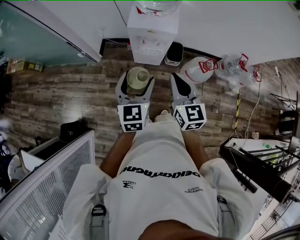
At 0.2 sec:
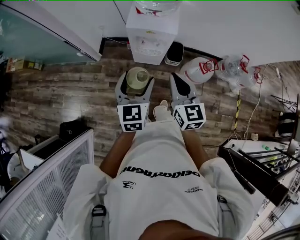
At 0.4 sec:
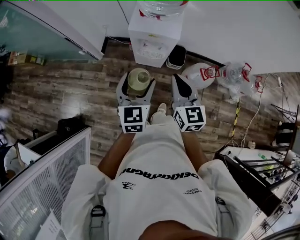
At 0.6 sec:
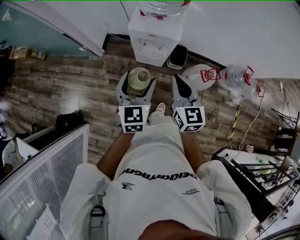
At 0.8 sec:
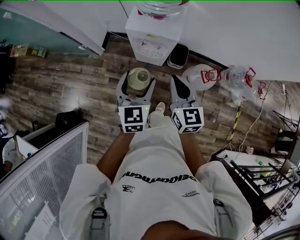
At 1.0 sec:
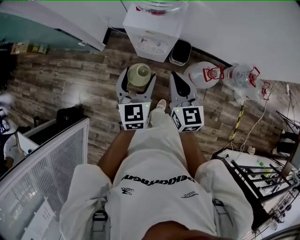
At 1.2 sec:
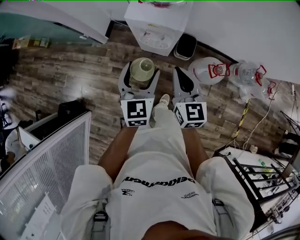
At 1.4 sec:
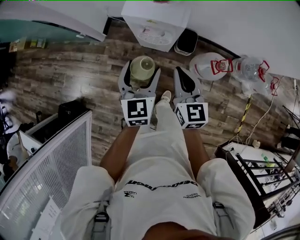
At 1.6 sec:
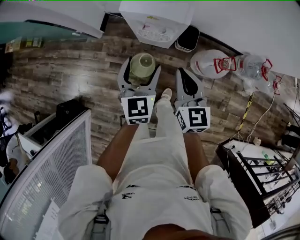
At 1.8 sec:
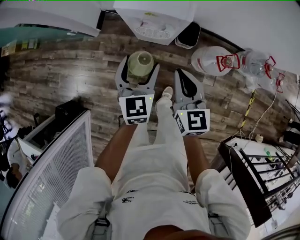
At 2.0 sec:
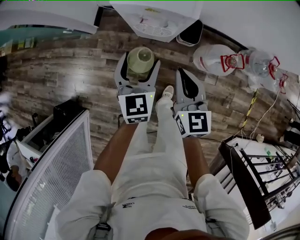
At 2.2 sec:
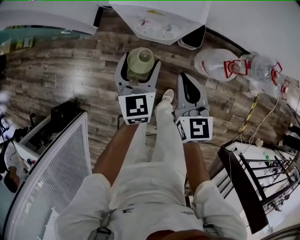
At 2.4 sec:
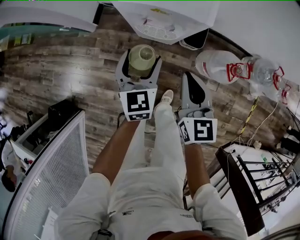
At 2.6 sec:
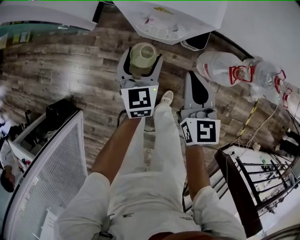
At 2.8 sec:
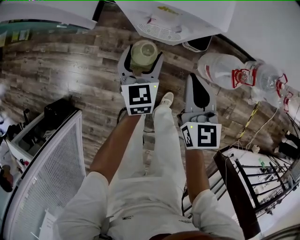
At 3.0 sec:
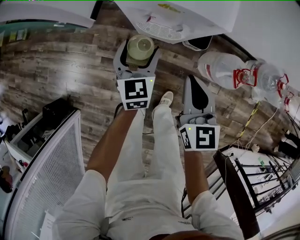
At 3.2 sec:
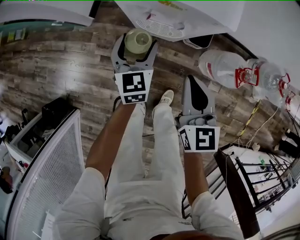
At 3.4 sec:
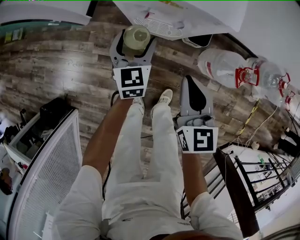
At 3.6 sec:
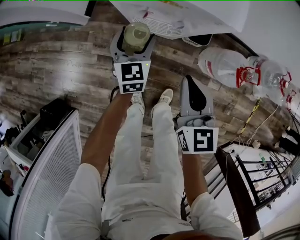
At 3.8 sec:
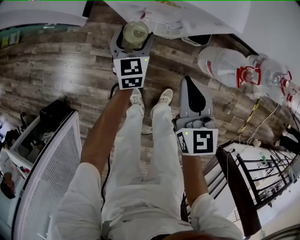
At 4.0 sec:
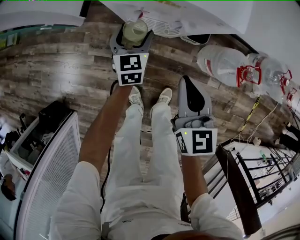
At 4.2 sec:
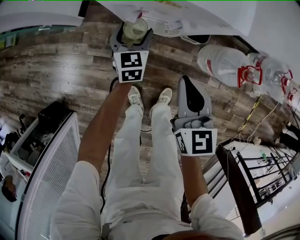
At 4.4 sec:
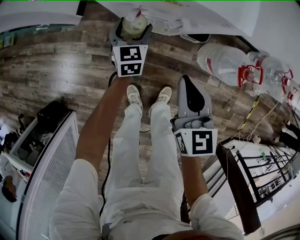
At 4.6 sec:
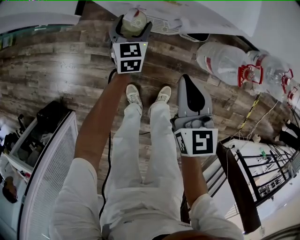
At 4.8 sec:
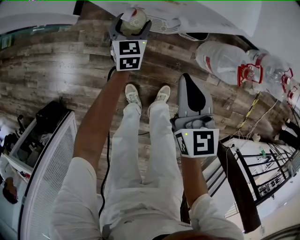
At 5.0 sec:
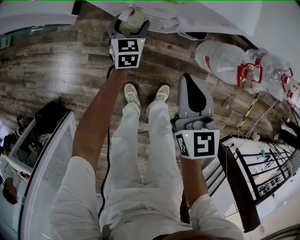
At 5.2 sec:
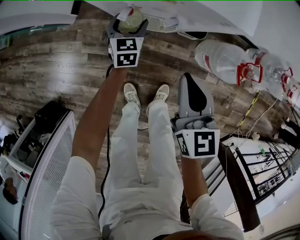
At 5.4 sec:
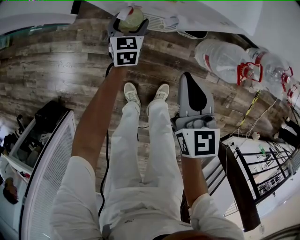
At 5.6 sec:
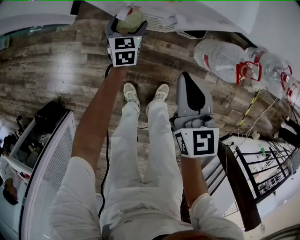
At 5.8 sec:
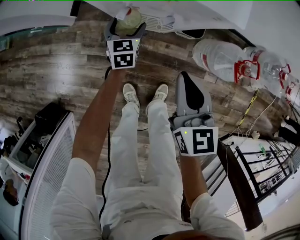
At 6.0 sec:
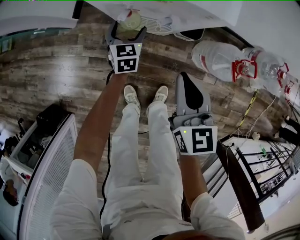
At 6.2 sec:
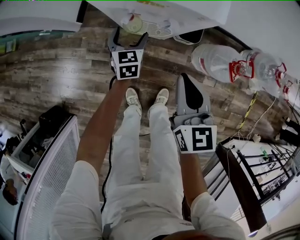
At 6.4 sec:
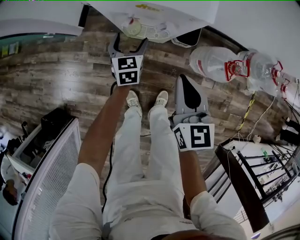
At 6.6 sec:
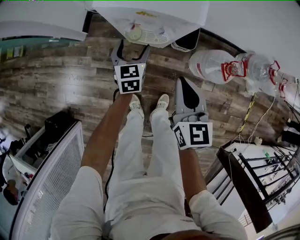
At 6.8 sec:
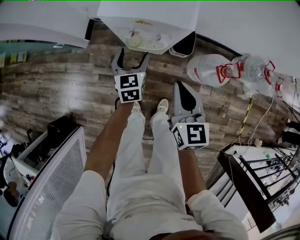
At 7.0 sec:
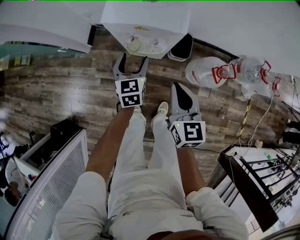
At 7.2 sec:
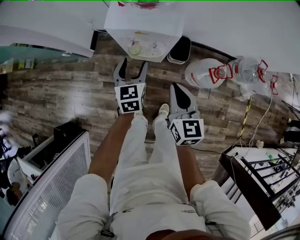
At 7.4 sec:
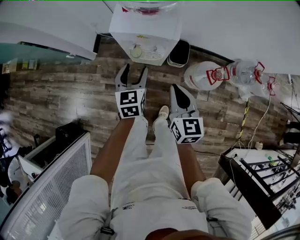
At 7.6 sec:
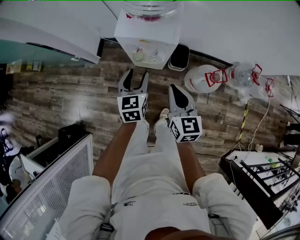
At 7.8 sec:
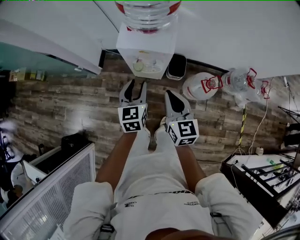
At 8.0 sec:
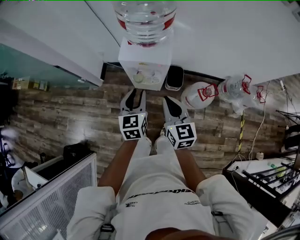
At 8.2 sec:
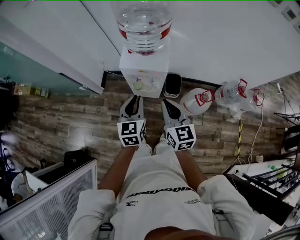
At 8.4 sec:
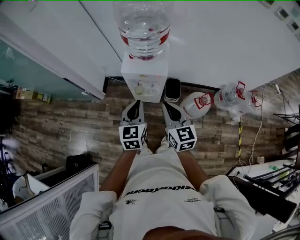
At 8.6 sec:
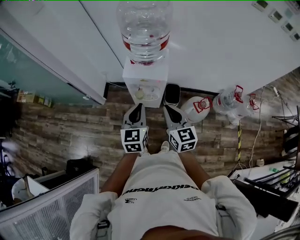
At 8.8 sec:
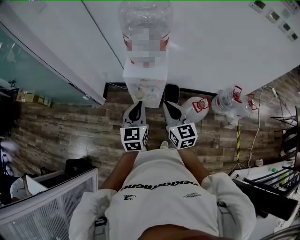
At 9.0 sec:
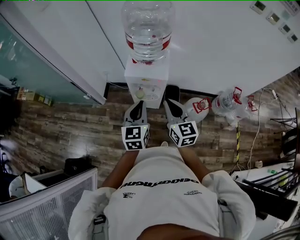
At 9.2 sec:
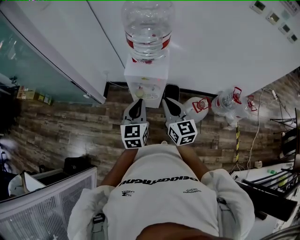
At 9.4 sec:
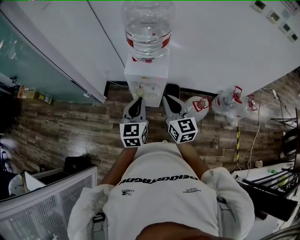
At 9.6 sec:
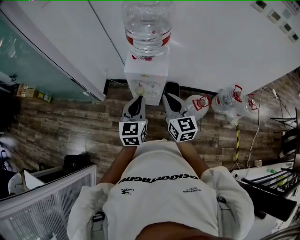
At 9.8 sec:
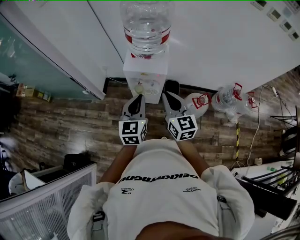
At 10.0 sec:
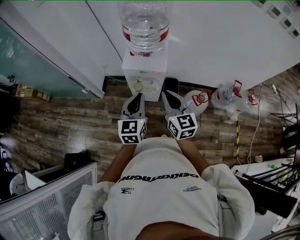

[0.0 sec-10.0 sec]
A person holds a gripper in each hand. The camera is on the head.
0.0 sec to 1.4 sec: The left gripper heads forward, downward and to the right, covering approximately 15 cm. Meanwhile the right gripper travels downward, forward and to the right by some 20 cm.
1.4 sec to 2.8 sec: The right gripper heads downward, covering approximately 20 cm. Meanwhile the left gripper travels downward and forward by roughly 30 cm.
2.8 sec to 4.2 sec: The right gripper travels downward by roughly 10 cm. Meanwhile the left gripper moves downward and forward, roughly 20 cm.
4.2 sec to 5.8 sec: The left gripper moves downward, approximately 5 cm.
5.8 sec to 7.2 sec: The left gripper heads upward, covering about 30 cm. Meanwhile the right gripper shifts approximately 15 cm upward.
7.2 sec to 8.6 sec: The right gripper is displaced upward by some 20 cm; the left gripper goes some 30 cm upward and backward, and closes up.
8.6 sec to 10.0 sec: The grippers stay close to where they were, moving slightly.

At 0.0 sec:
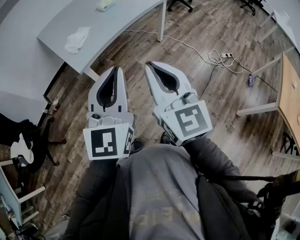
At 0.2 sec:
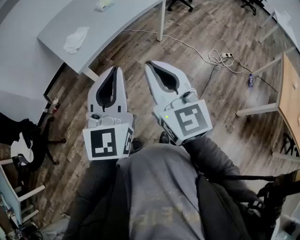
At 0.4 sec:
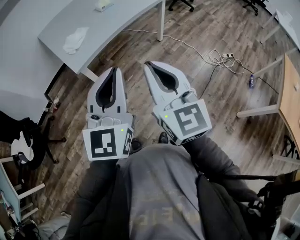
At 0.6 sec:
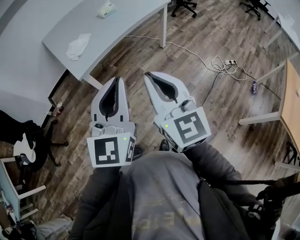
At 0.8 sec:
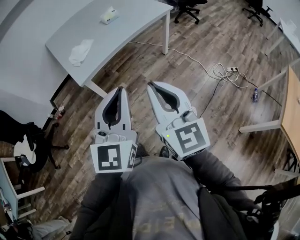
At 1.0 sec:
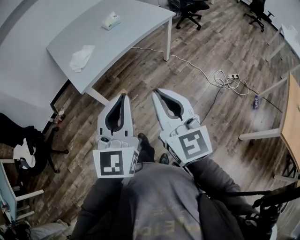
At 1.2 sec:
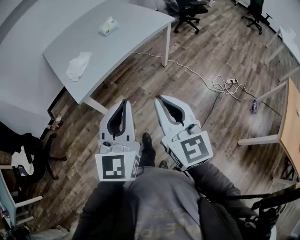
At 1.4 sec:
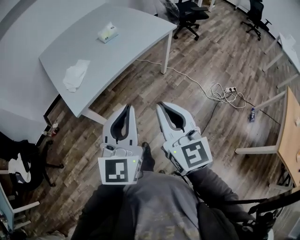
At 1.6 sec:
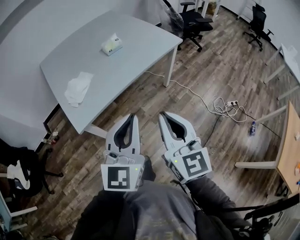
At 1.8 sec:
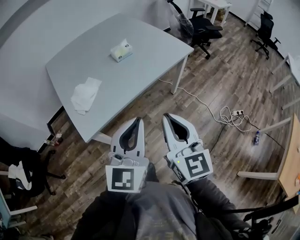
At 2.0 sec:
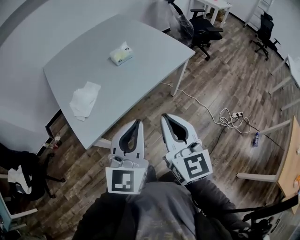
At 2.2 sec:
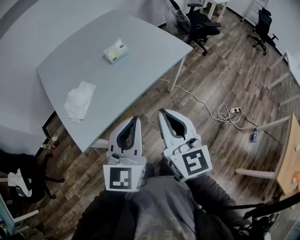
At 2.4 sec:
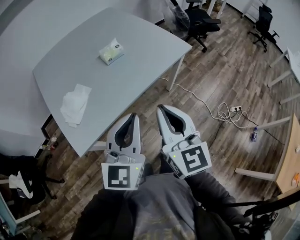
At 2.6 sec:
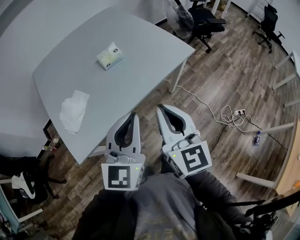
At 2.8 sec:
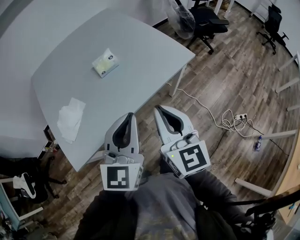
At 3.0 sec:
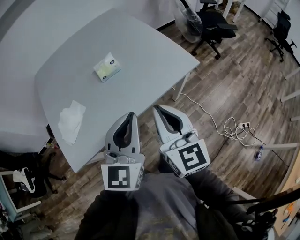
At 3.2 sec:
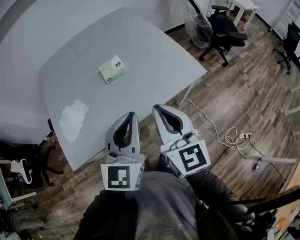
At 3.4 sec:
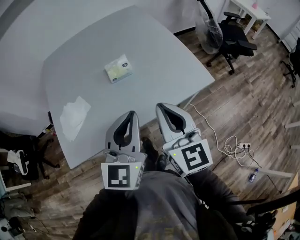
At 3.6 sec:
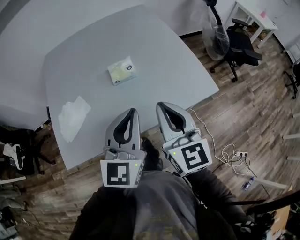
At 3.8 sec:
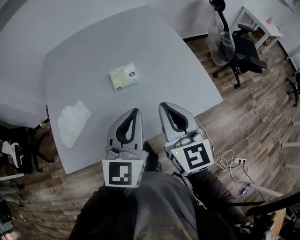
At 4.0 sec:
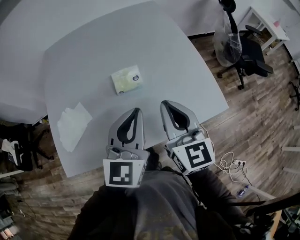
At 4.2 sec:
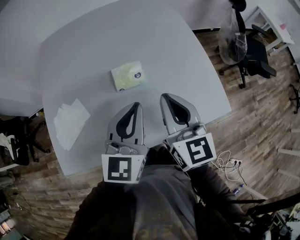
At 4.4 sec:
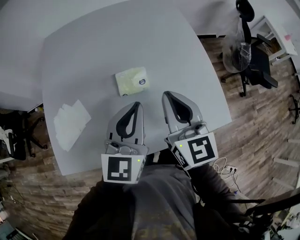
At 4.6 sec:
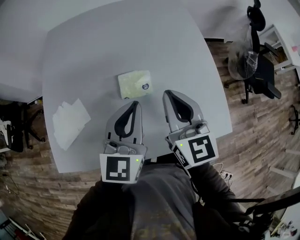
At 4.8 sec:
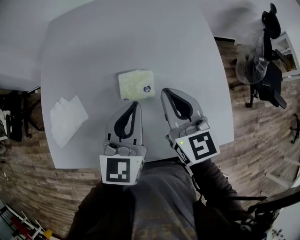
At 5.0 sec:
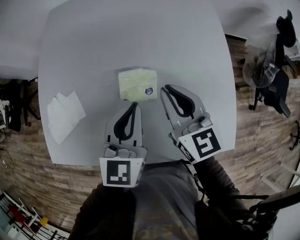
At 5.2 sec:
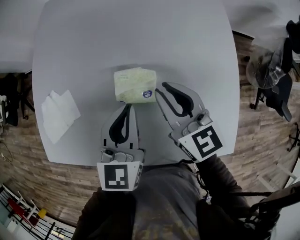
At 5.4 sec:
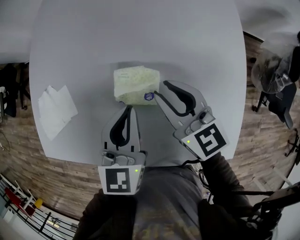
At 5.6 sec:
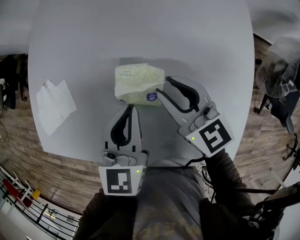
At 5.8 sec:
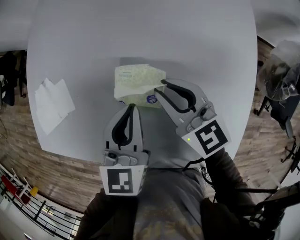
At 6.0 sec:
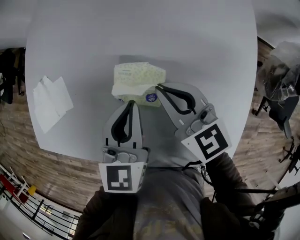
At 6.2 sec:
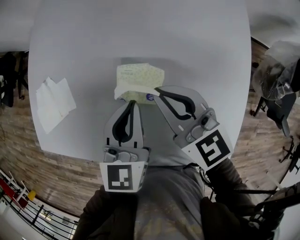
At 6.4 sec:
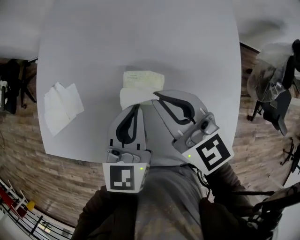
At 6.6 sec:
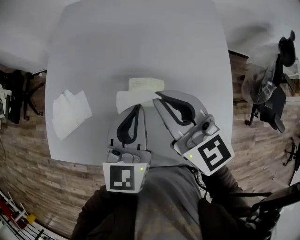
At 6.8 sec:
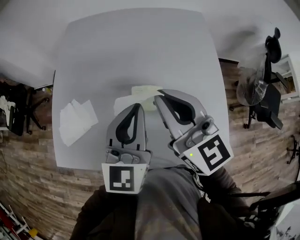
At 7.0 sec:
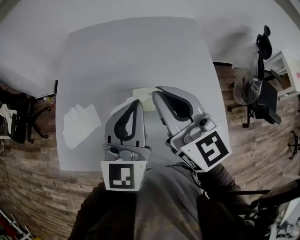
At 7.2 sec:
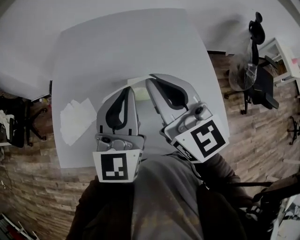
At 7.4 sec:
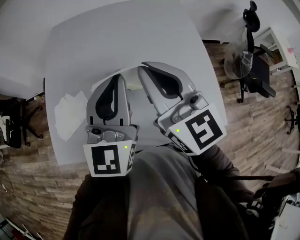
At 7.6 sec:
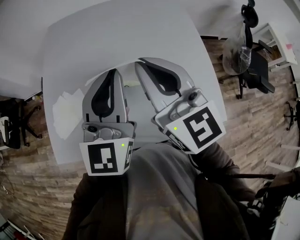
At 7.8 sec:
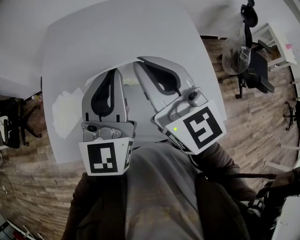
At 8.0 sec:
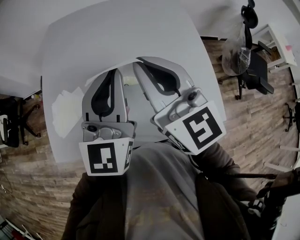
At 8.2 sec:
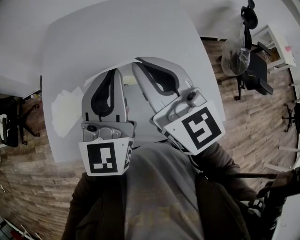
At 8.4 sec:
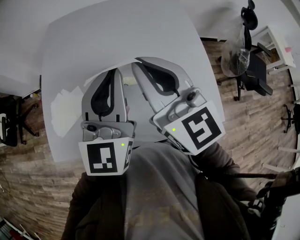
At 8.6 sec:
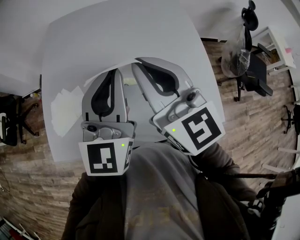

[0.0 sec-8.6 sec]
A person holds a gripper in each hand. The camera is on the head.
0.0 sec to 1.4 sec: Both grippers travel together forward and to the right, approximately 20 cm.
1.4 sec to 2.8 sec: The grippers both shift forward by some 35 cm.
2.8 sec to 4.4 sec: The two grippers go approximately 35 cm forward. The left gripper turns by roughly 20 degrees. Meanwhile the right gripper changes its angle by some 20 degrees.
4.4 sec to 5.8 sec: The two grippers go approximately 15 cm downward. The right gripper swivels some 50 degrees, and opens, while the left gripper rotates approximately 30 degrees.
5.8 sec to 7.2 sec: Both grippers move upward, roughly 25 cm. The right gripper rotates about 30 degrees, and closes up; the left gripper changes its angle by roughly 30 degrees.
7.2 sec to 8.6 sec: The grippers stay close to where they were, moving slightly.

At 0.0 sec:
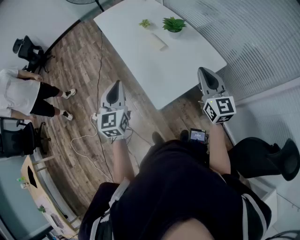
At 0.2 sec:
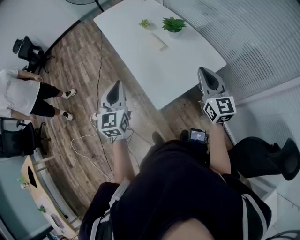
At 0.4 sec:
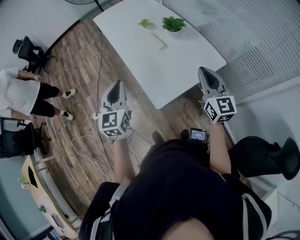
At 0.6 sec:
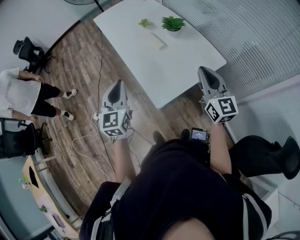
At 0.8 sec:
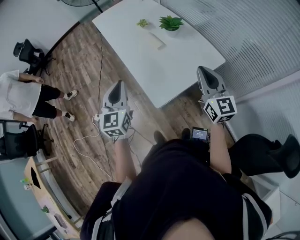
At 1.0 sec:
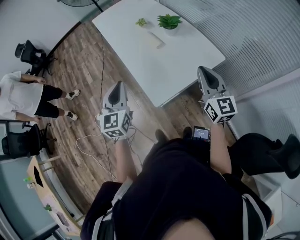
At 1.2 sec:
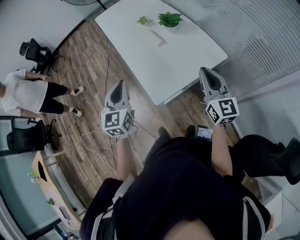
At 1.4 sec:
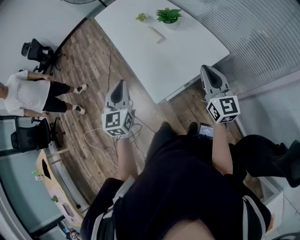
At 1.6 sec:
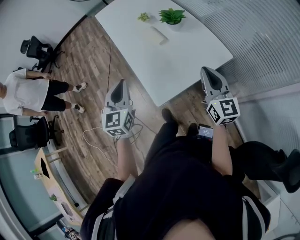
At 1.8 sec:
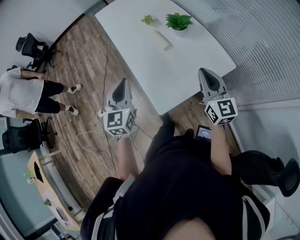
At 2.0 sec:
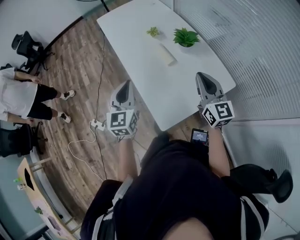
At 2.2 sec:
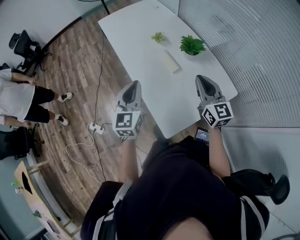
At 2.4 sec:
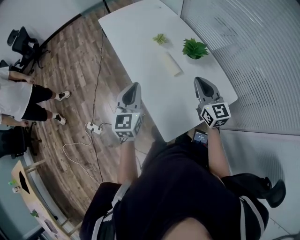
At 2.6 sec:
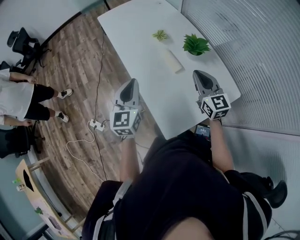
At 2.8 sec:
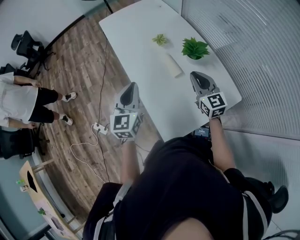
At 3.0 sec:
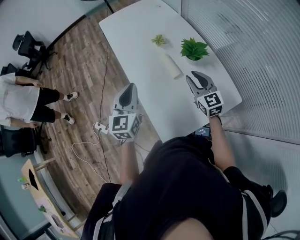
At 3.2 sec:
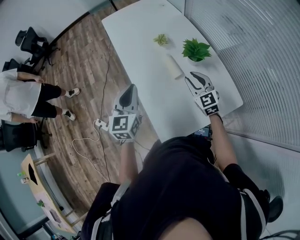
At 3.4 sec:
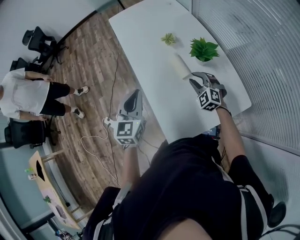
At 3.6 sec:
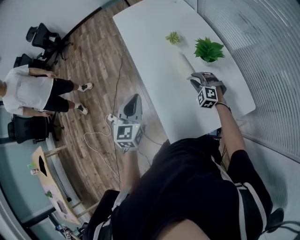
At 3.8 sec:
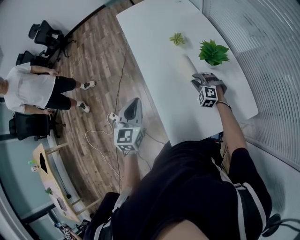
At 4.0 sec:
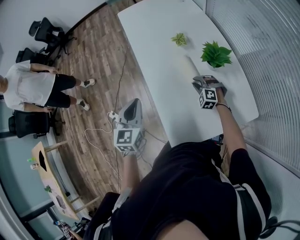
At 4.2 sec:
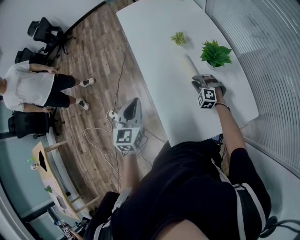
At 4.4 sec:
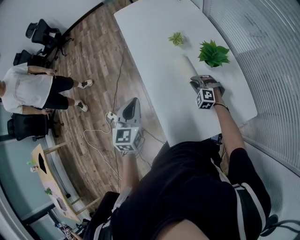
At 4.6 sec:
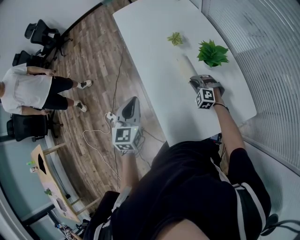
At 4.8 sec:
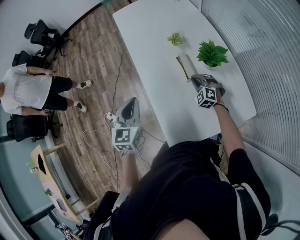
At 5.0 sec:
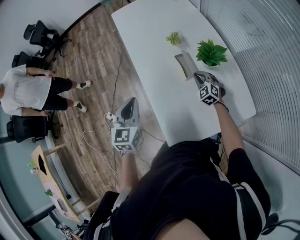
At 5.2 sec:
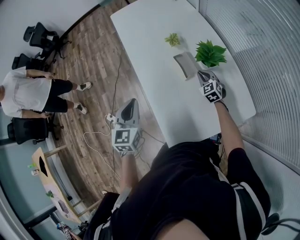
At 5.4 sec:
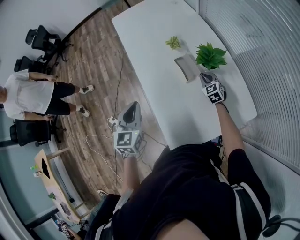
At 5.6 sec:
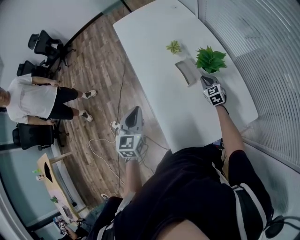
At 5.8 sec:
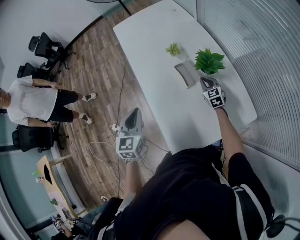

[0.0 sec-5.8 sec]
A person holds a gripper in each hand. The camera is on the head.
0.0 sec to 1.4 sec: Both grippers travel together to the right, approximately 5 cm.
1.4 sec to 2.8 sec: The right gripper heads forward and to the left, covering roughly 30 cm. The left gripper heads forward, covering roughly 25 cm.
2.8 sec to 4.4 sec: The right gripper goes some 25 cm downward, and rolls counterclockwise, seen from behind, by about 60 degrees; the left gripper ends up approximately 5 cm from where it was.
4.4 sec to 5.8 sec: The right gripper heads to the right, covering about 10 cm, and rolls clockwise, seen from behind, by some 50 degrees.
